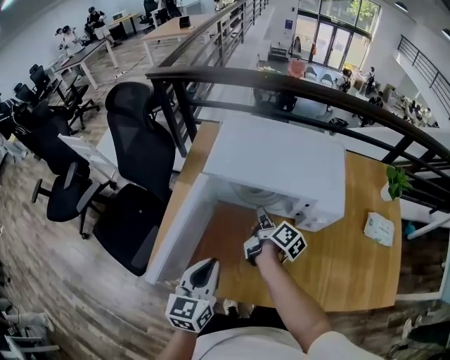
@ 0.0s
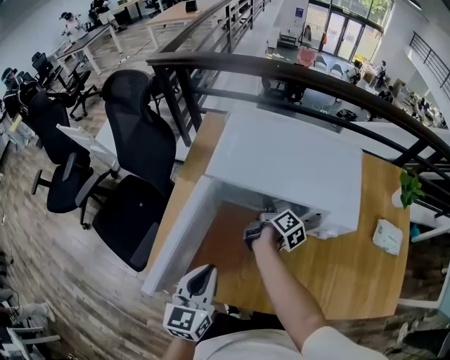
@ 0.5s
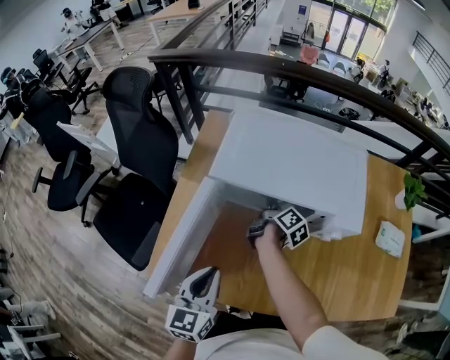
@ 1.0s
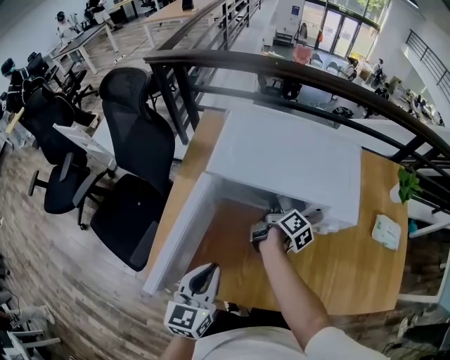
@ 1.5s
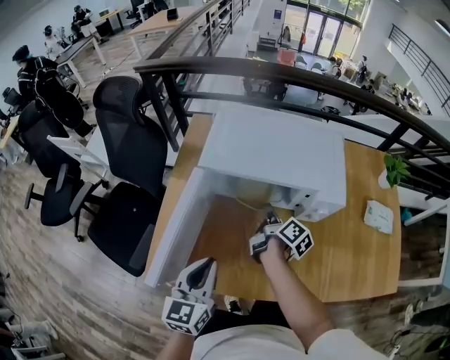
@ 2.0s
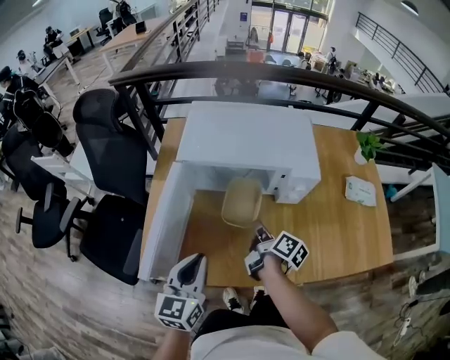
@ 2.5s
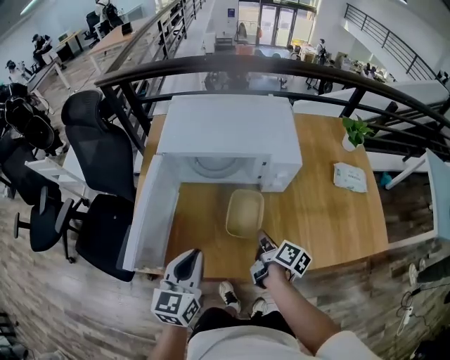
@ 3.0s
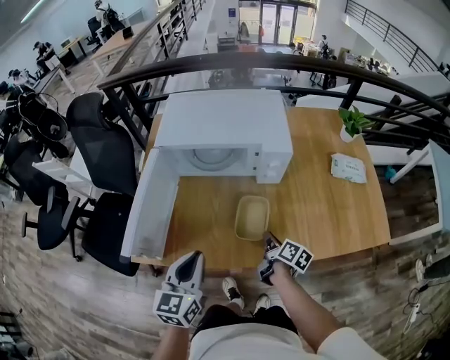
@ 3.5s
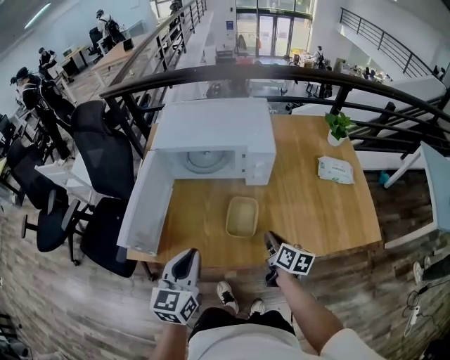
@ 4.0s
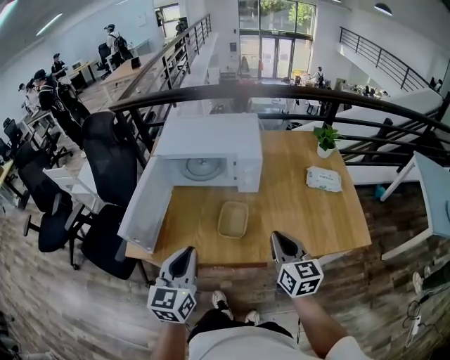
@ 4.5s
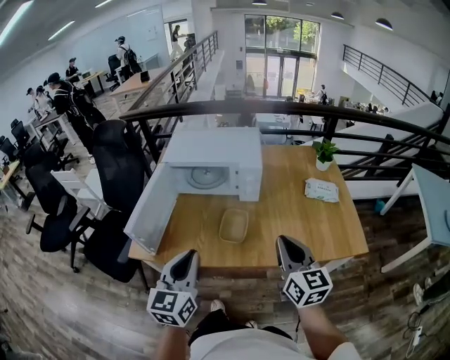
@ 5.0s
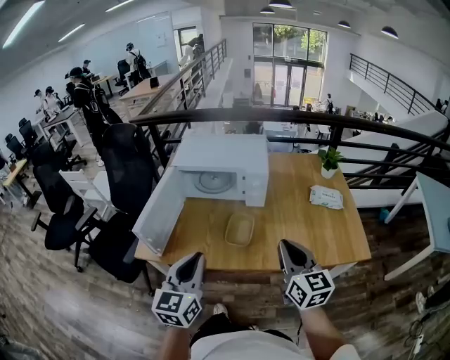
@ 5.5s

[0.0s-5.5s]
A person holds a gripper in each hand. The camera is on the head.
0.0s to 2.0s: The right gripper goes forward and returns, roughly 10 cm each way.
2.0s to 3.5s: The left gripper goes some 10 cm backward and to the right; the right gripper travels backward and to the right by approximately 25 cm.
3.5s to 5.5s: The left gripper shifts roughly 20 cm backward, upward and to the right, while the right gripper travels upward and backward by roughly 35 cm, and rolls counterclockwise, seen from behind, by about 60 degrees.

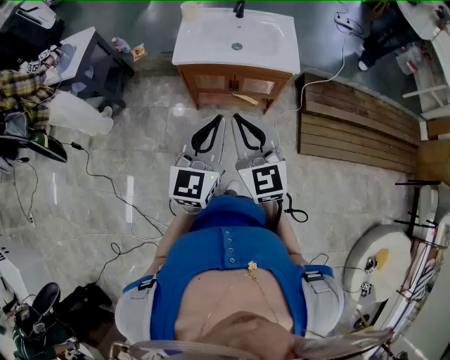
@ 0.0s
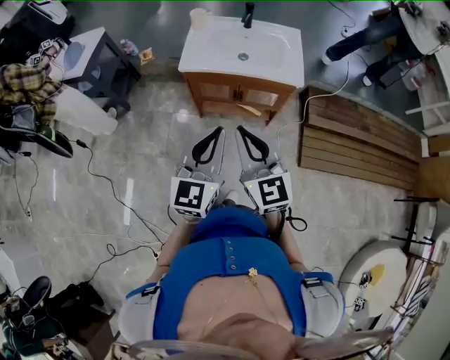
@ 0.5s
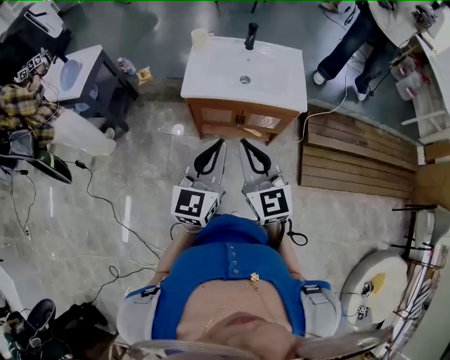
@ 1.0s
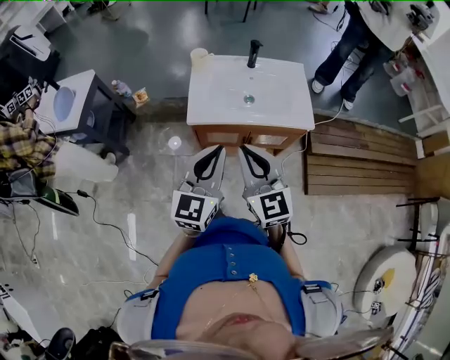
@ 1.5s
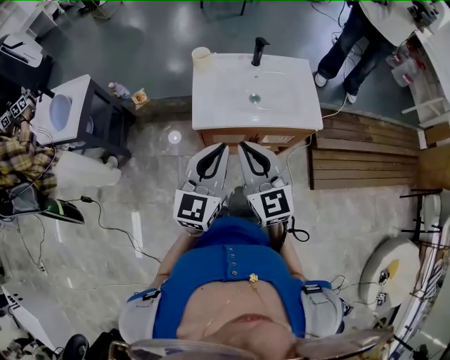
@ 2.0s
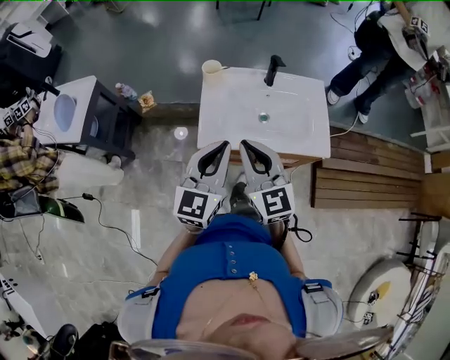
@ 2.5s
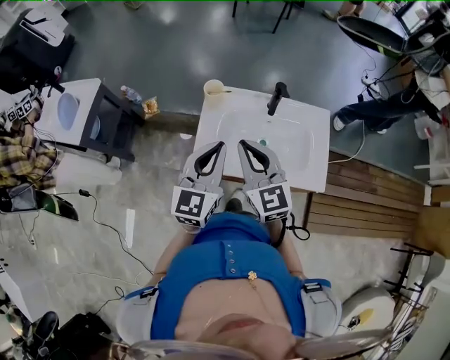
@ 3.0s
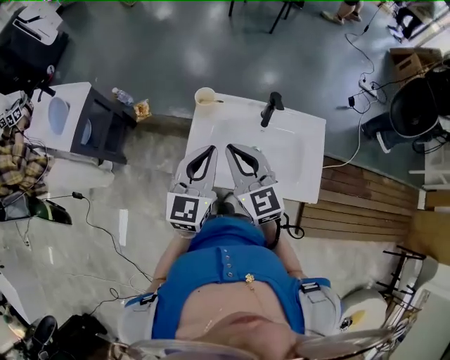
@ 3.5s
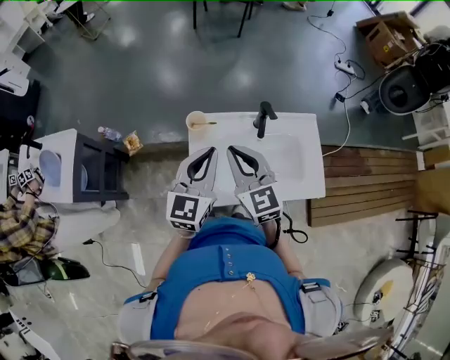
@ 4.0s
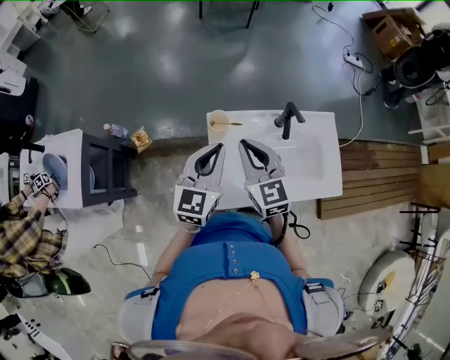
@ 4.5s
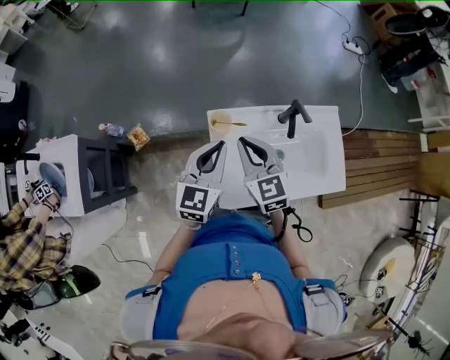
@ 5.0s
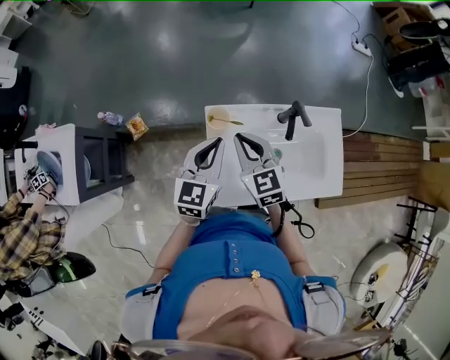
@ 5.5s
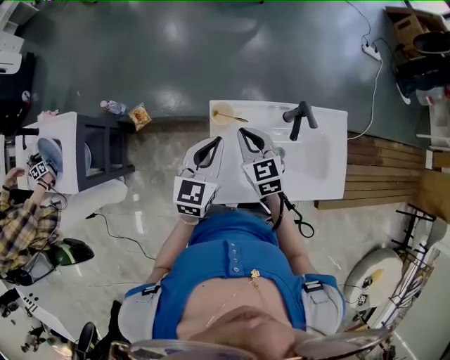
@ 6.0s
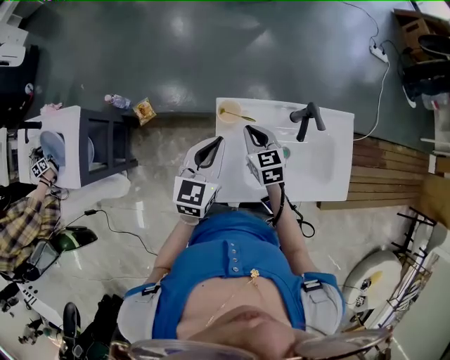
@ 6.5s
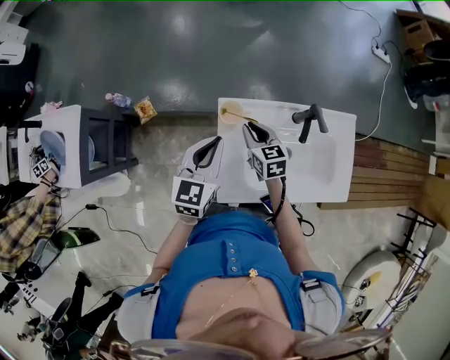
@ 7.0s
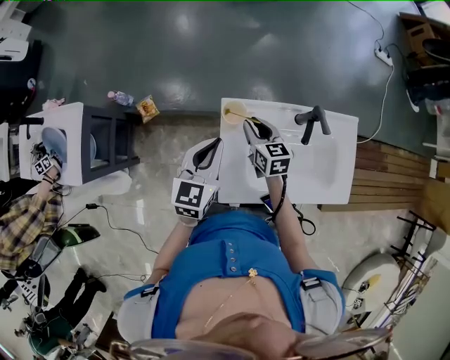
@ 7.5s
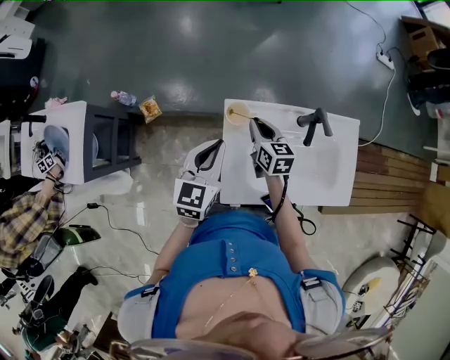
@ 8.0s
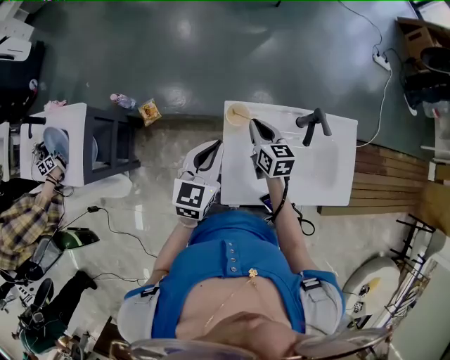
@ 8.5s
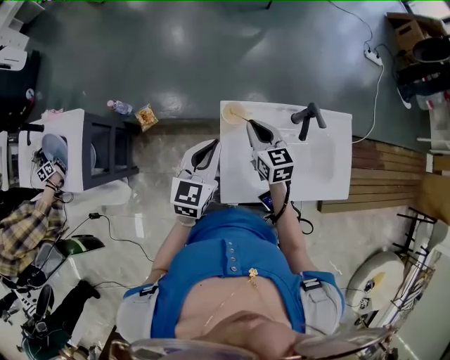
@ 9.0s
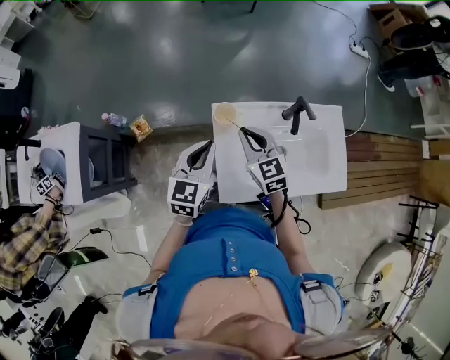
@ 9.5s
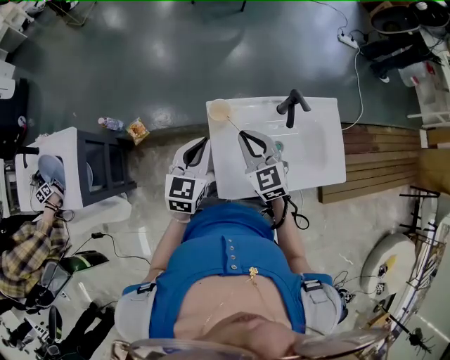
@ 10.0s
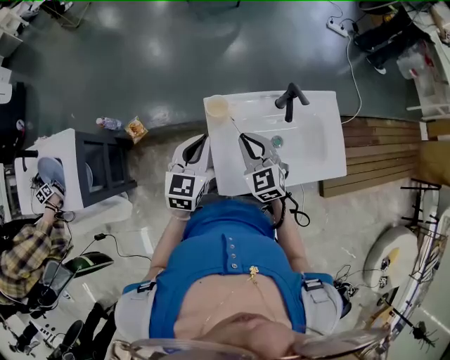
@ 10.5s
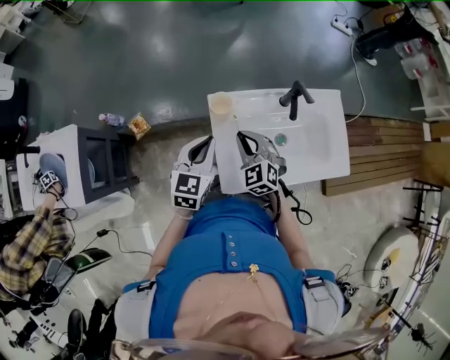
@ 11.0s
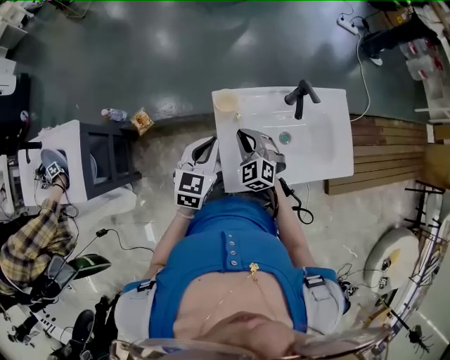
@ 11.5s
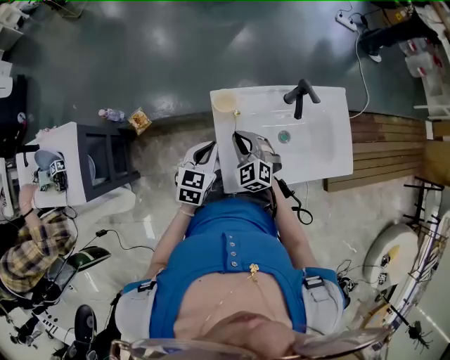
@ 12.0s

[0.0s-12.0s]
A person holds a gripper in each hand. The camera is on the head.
0.0s to 2.0s: Both grippers move forward and to the left, some 25 cm.
2.0s to 4.0s: Both grippers travel together forward, some 30 cm.
4.0s to 6.0s: The right gripper heads downward and forward, covering some 20 cm, and rotates about 20 degrees, while the left gripper goes some 15 cm downward, forward and to the left.
6.0s to 8.0s: The right gripper is displaced downward by about 5 cm, and changes its angle by roughly 30 degrees.
8.0s to 10.0s: The right gripper travels upward and backward by about 15 cm, and turns by roughly 40 degrees.
10.0s to 12.0s: The two grippers go some 10 cm downward. The right gripper rotates about 20 degrees.

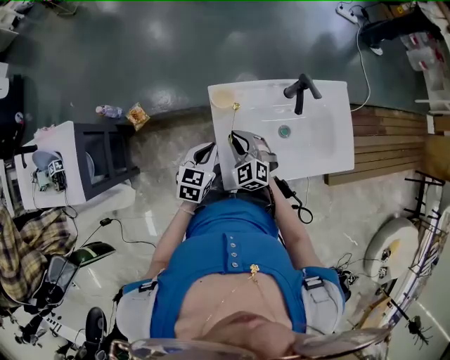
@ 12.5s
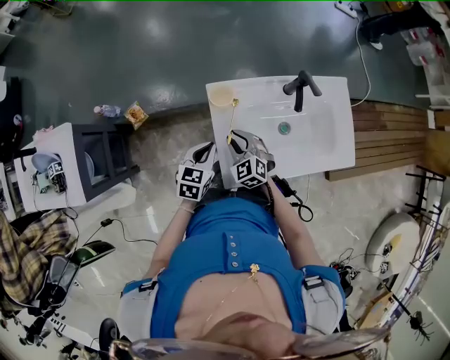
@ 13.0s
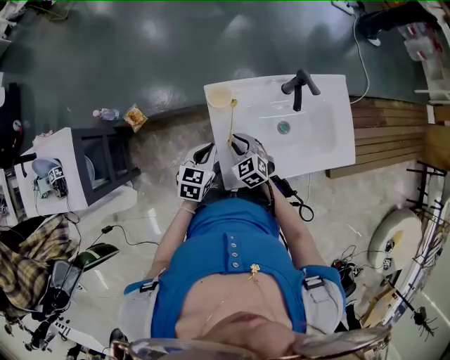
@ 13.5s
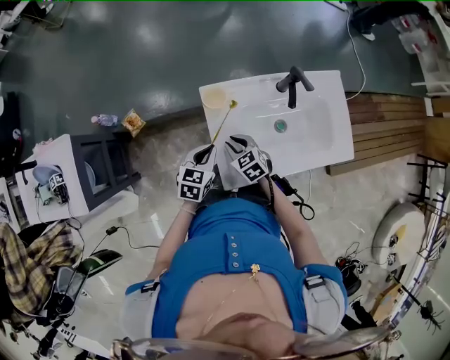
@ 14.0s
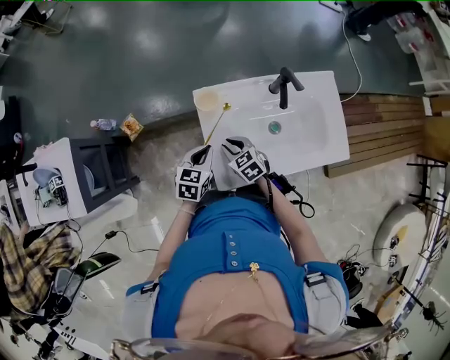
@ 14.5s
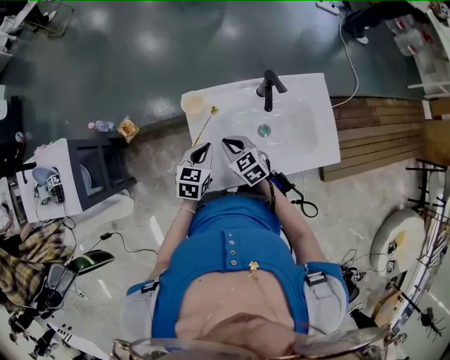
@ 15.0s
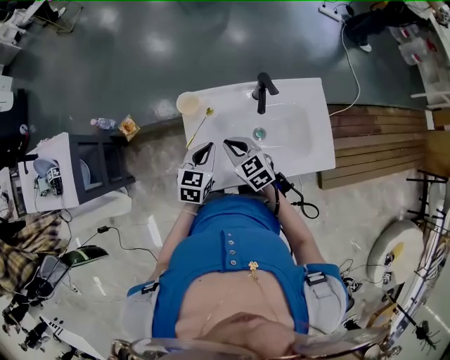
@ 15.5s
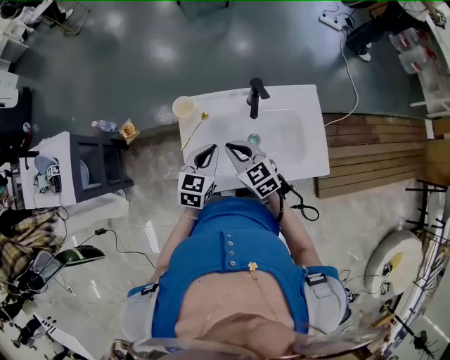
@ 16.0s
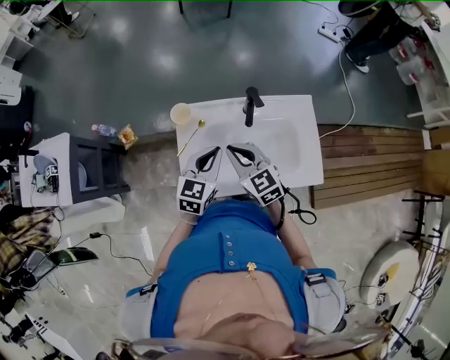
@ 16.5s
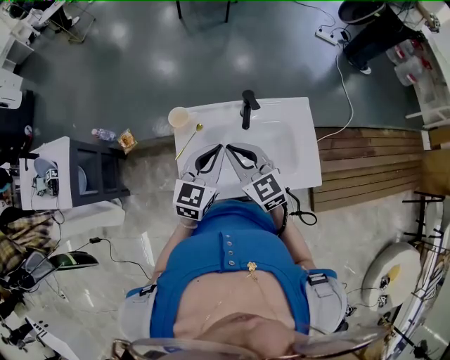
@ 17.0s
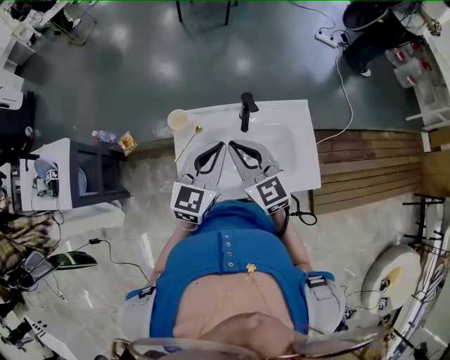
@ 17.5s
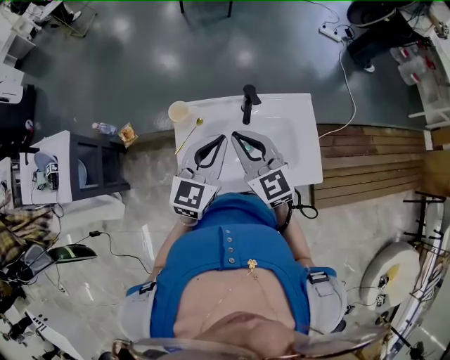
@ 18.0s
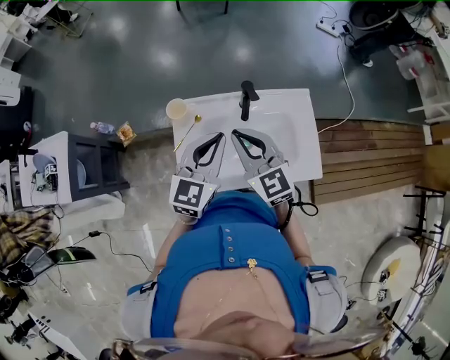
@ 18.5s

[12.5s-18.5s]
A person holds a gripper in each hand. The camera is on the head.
12.5s to 14.5s: The right gripper moves about 5 cm, and swivels some 30 degrees.
14.5s to 16.5s: The left gripper moves to the right and upward, about 20 cm. Meanwhile the right gripper travels upward and to the right by roughly 25 cm, and turns by roughly 30 degrees.
16.5s to 18.5s: Both grippers travel together upward, some 10 cm.

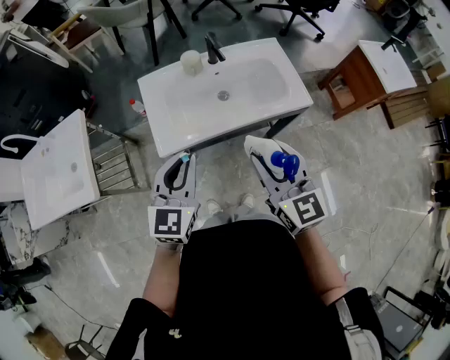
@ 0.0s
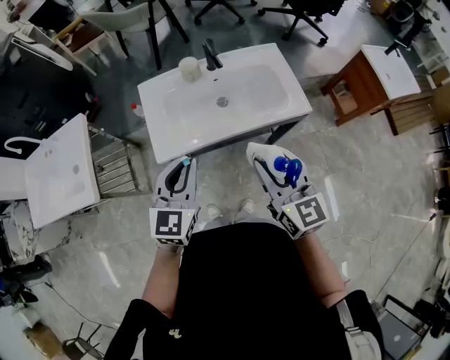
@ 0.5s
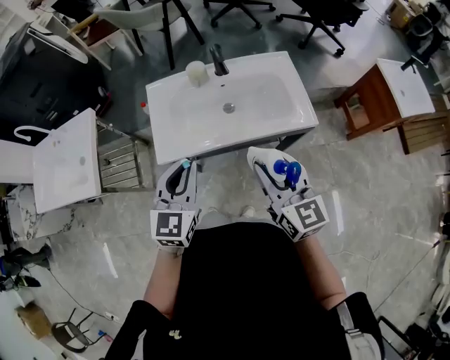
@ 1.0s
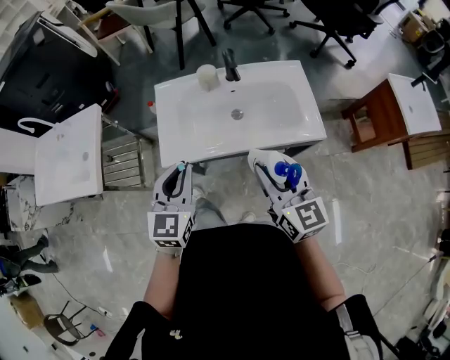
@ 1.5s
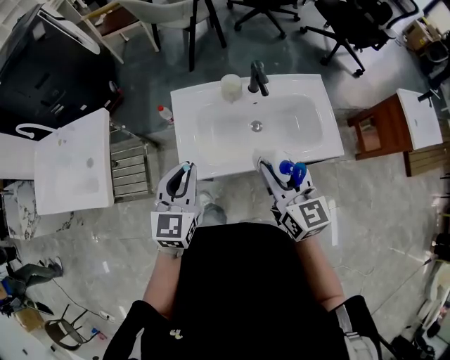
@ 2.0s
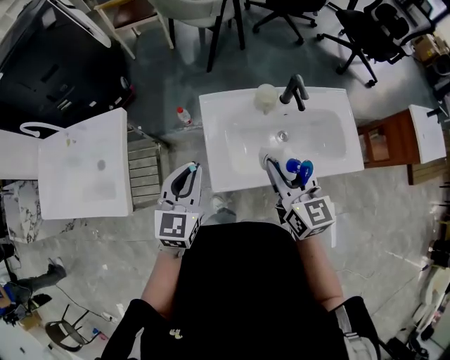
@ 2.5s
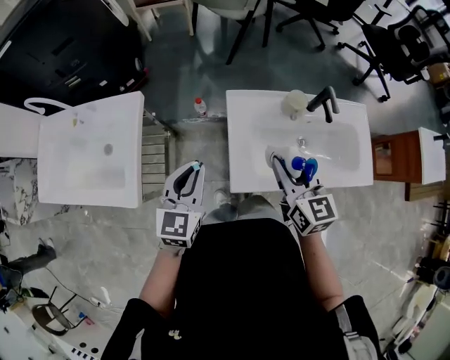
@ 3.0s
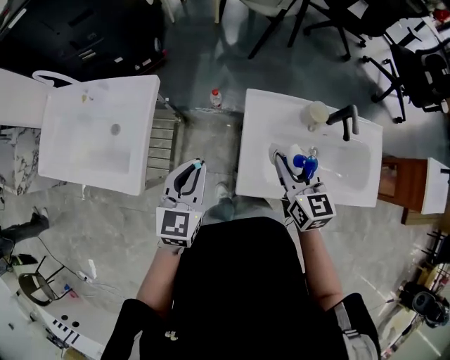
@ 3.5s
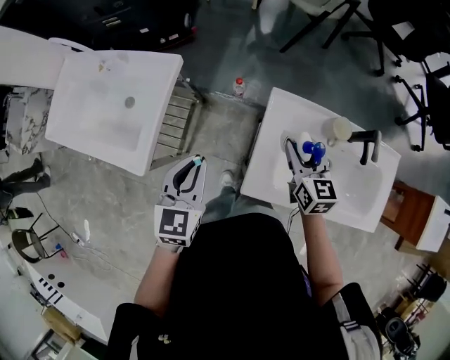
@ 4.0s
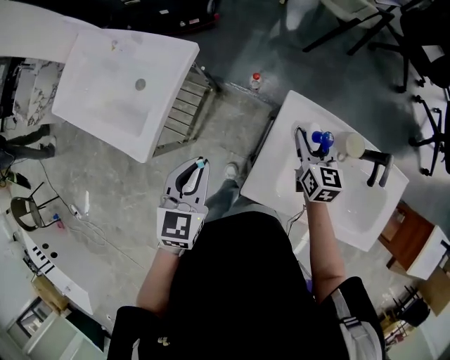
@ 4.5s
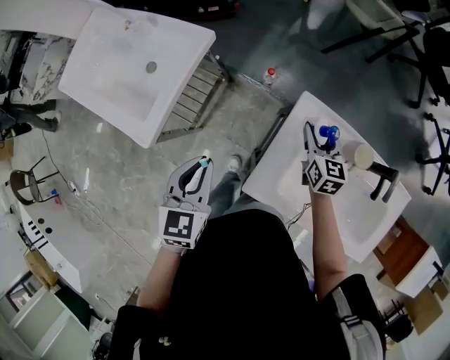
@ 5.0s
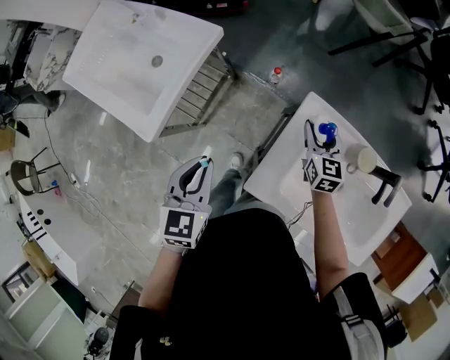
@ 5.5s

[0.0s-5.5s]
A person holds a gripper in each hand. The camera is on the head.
0.0s to 2.0s: The right gripper travels forward by roughly 15 cm; the left gripper is displaced forward and to the left by roughly 10 cm.
2.0s to 3.5s: The right gripper moves to the left and forward, about 25 cm. Meanwhile the left gripper goes some 20 cm to the left.
3.5s to 5.5s: The left gripper moves about 5 cm, and turns by roughly 30 degrees. The right gripper moves downward and forward, roughly 25 cm.
